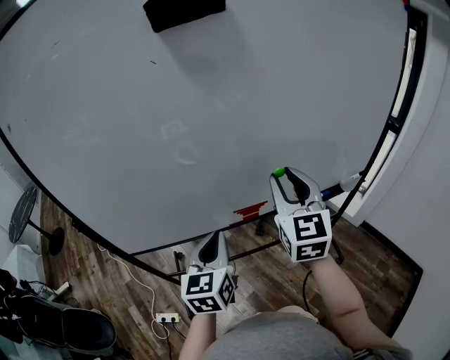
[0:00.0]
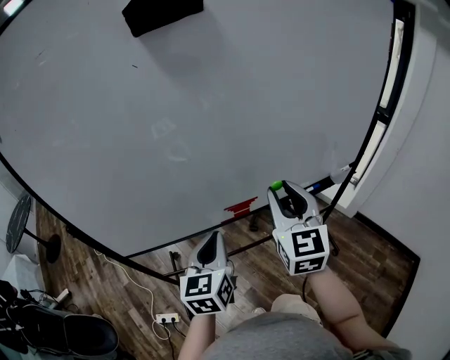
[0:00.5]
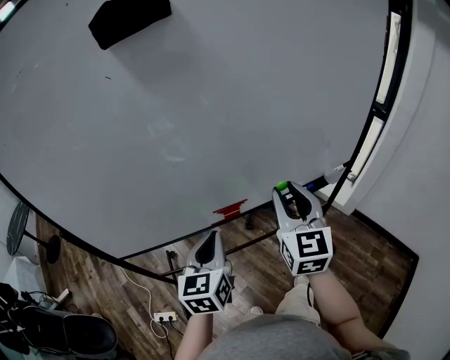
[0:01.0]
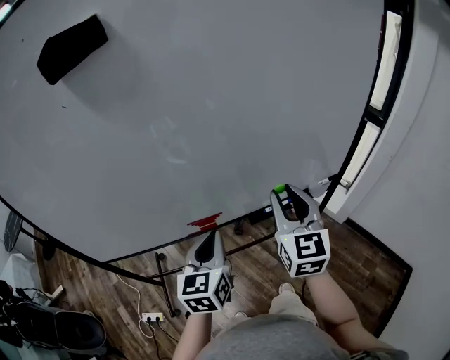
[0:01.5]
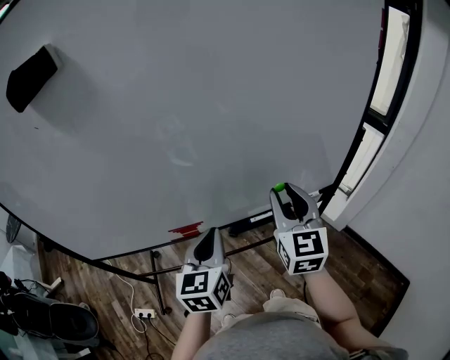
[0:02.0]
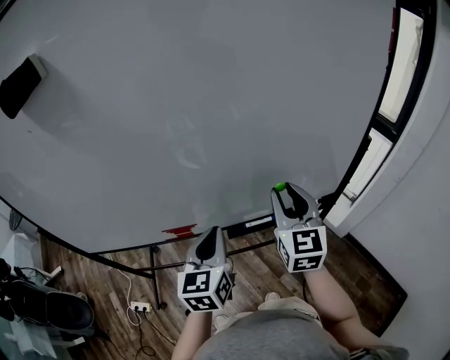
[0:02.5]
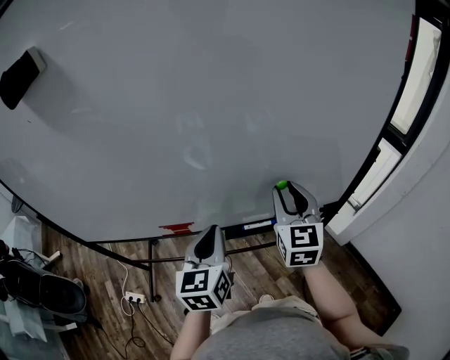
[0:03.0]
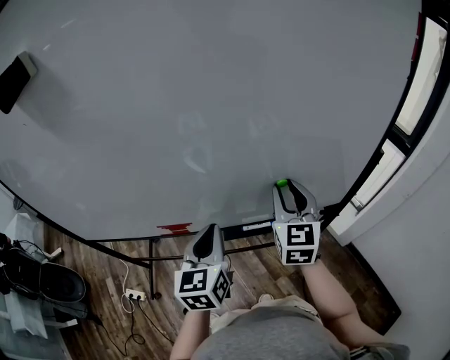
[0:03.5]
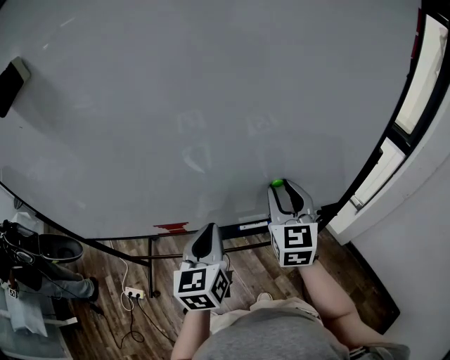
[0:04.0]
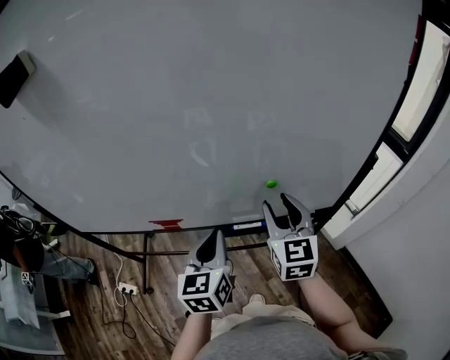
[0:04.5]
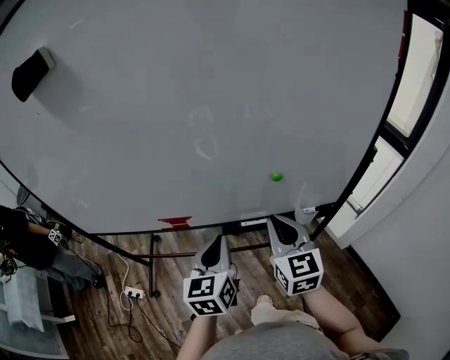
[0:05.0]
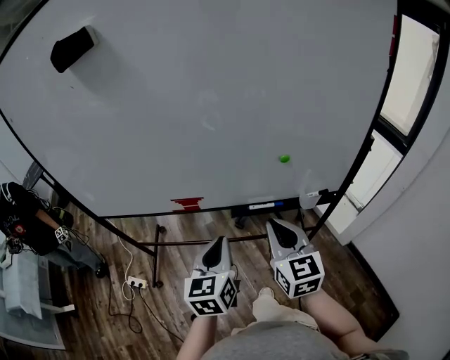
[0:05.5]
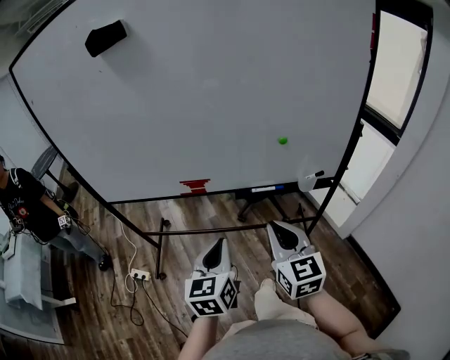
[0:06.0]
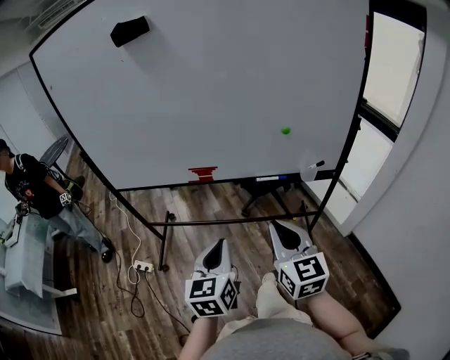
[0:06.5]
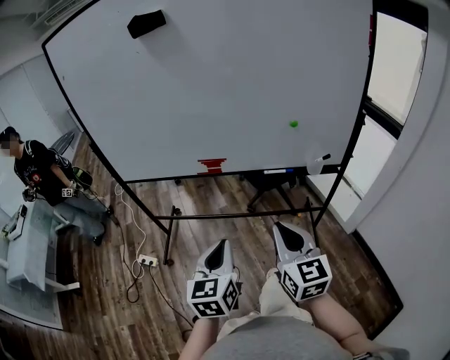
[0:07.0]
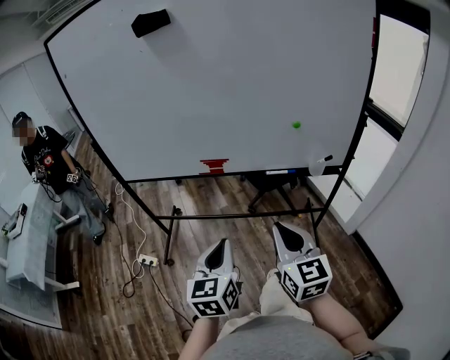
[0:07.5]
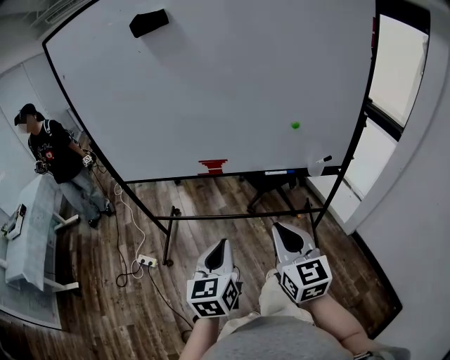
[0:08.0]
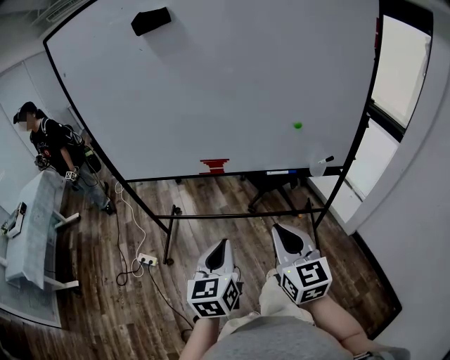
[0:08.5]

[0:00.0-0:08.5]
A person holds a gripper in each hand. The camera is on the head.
0:00.0 to 0:02.0: Both grippers move to the right, roughly 25 cm.
0:02.0 to 0:04.0: The left gripper moves to the right, about 5 cm. The right gripper moves forward, approximately 10 cm.
0:04.0 to 0:06.5: The grippers both shift backward by roughly 35 cm. The right gripper swivels some 20 degrees, and closes its fingers.
0:06.5 to 0:08.5: The right gripper moves about 5 cm.

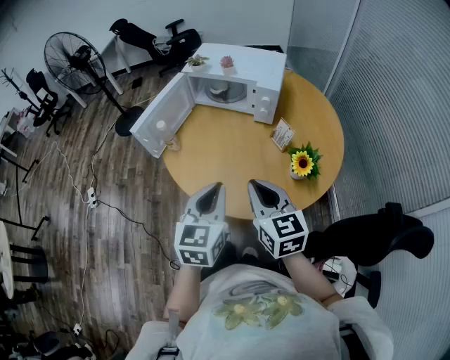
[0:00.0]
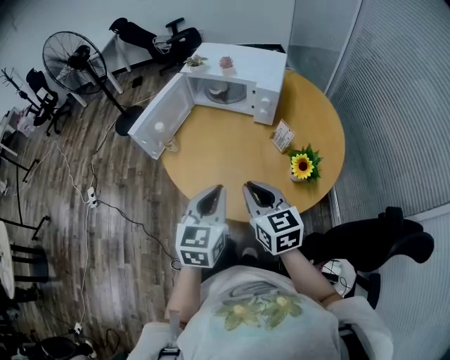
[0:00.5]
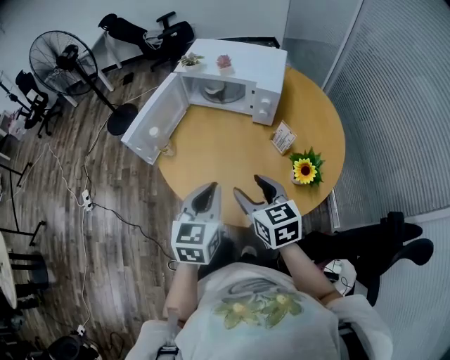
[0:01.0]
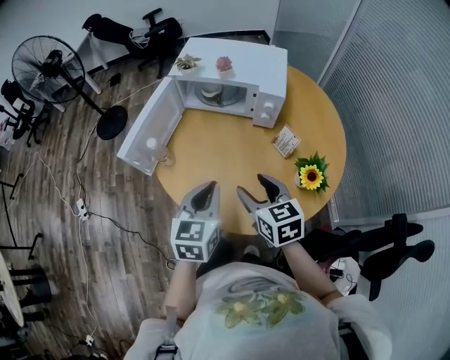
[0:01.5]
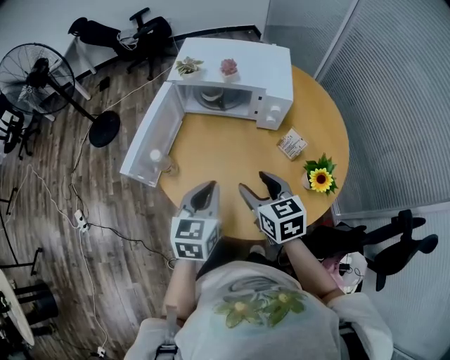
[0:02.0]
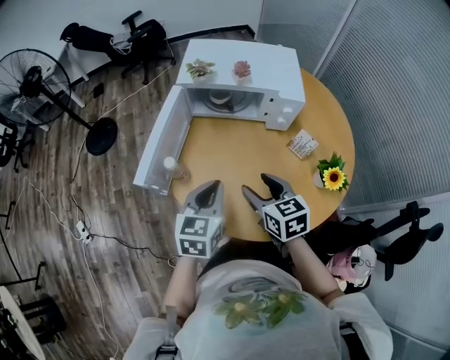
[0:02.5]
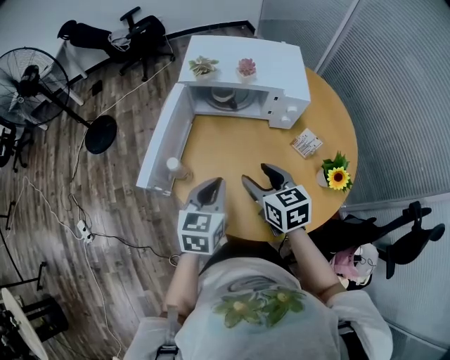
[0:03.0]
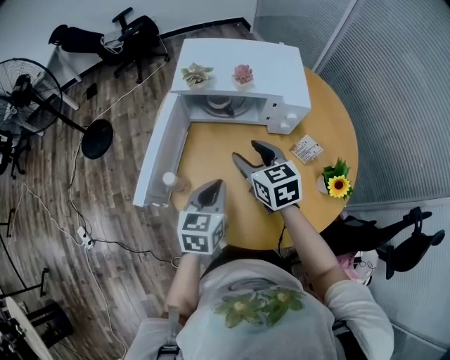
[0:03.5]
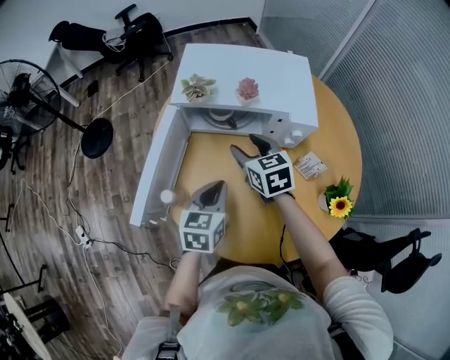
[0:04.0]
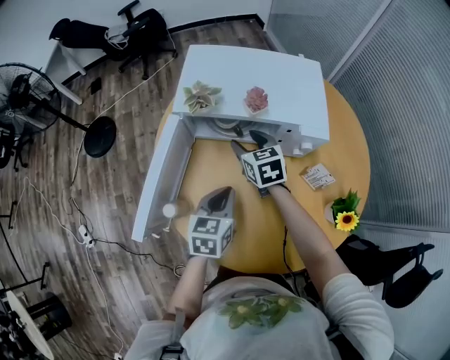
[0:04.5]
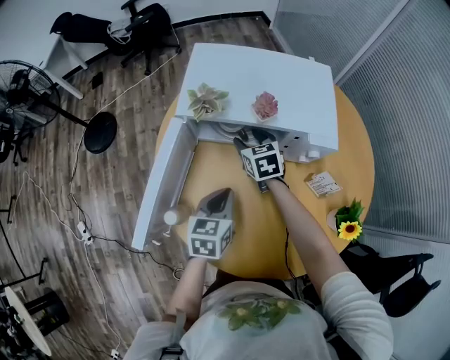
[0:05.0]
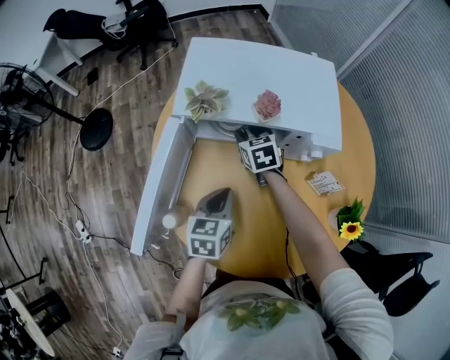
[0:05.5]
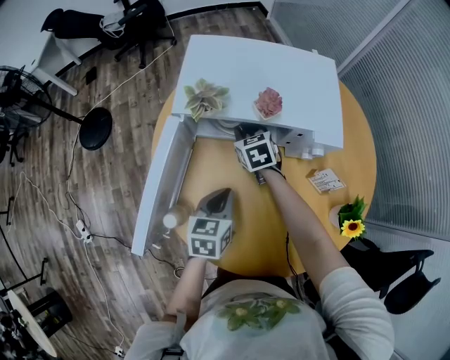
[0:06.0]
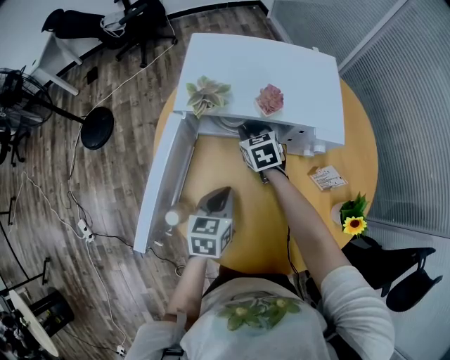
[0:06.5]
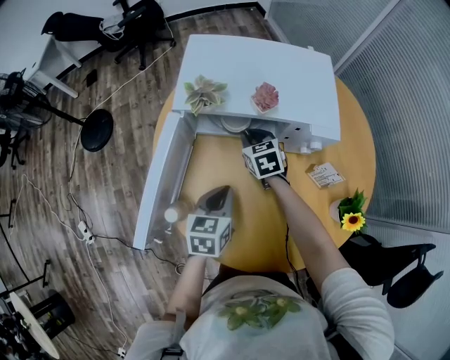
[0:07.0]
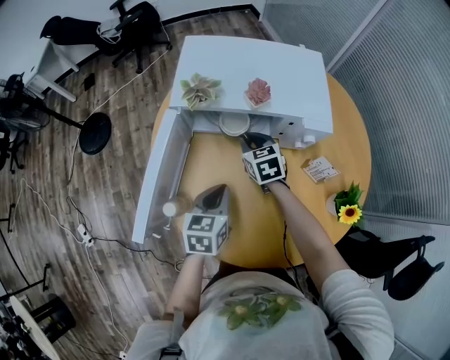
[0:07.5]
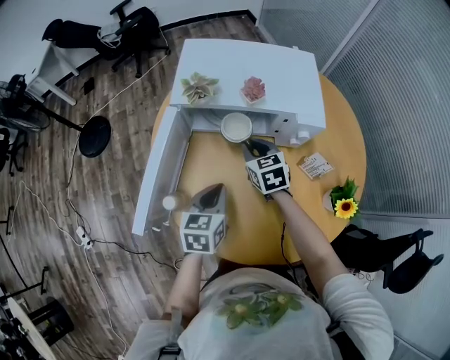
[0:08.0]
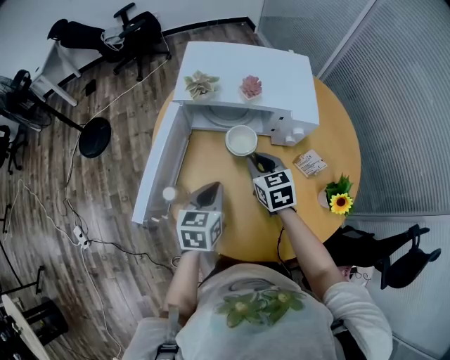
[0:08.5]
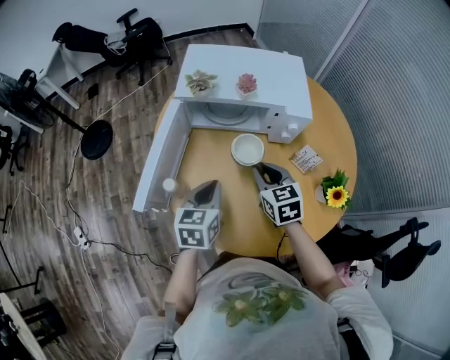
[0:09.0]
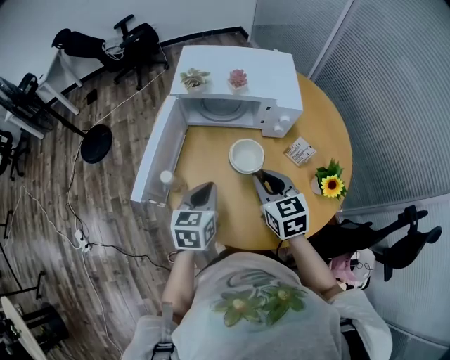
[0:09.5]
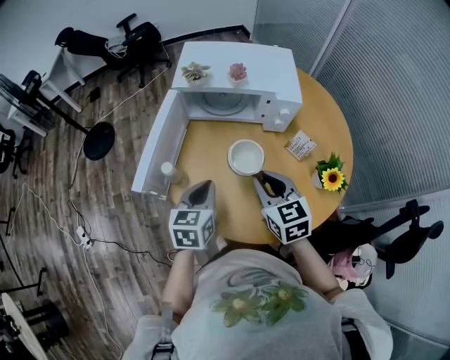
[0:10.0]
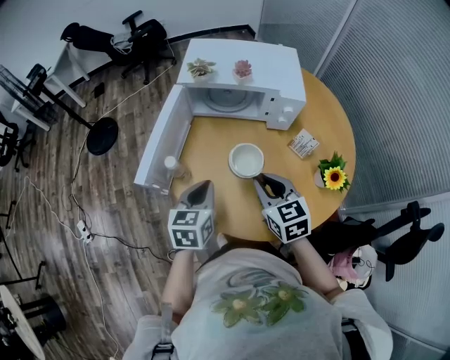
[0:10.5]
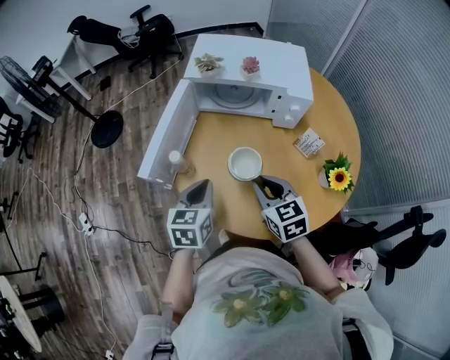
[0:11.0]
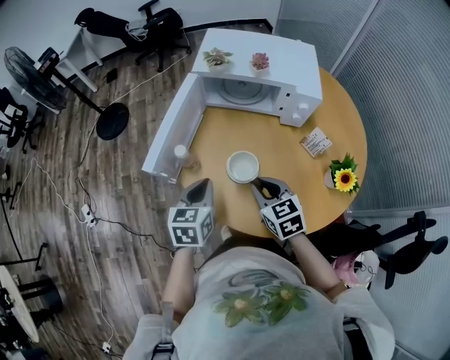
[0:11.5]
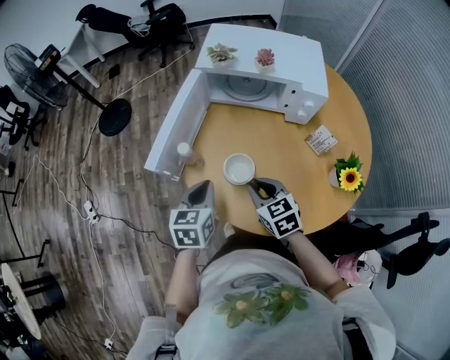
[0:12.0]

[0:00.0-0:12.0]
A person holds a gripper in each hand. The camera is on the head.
0:00.0 to 0:02.0: The right gripper shifts some 15 cm forward and downward, and opens up. The left gripper moves forward and to the left, about 20 cm.
0:02.0 to 0:04.0: The right gripper goes approximately 25 cm forward; the left gripper moves forward and downward, approximately 15 cm.
0:04.0 to 0:06.0: The left gripper travels downward by approximately 5 cm. The right gripper is displaced downward and forward by approximately 20 cm, and closes up.
0:06.0 to 0:08.0: The right gripper shifts roughly 10 cm backward and upward. The left gripper moves about 5 cm.
0:08.0 to 0:10.0: The right gripper is displaced backward and upward by roughly 25 cm, while the left gripper goes approximately 10 cm backward.
0:10.0 to 0:12.0: The right gripper shifts approximately 10 cm downward and to the left. The left gripper shifts some 5 cm to the left.

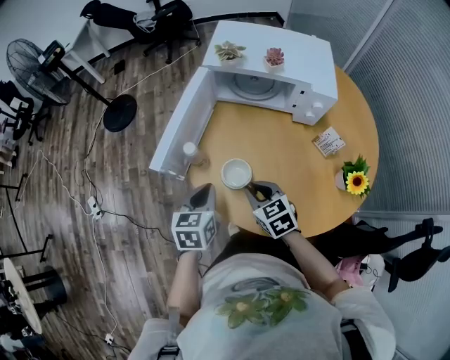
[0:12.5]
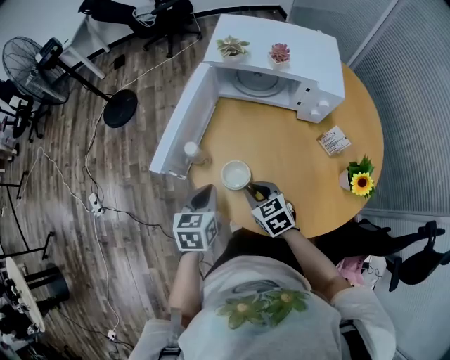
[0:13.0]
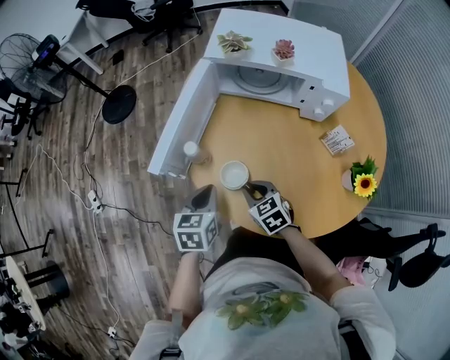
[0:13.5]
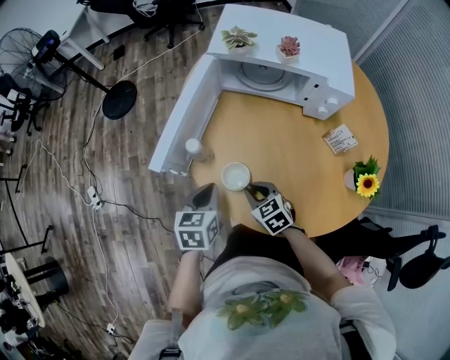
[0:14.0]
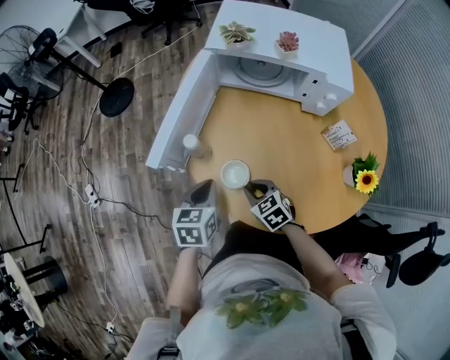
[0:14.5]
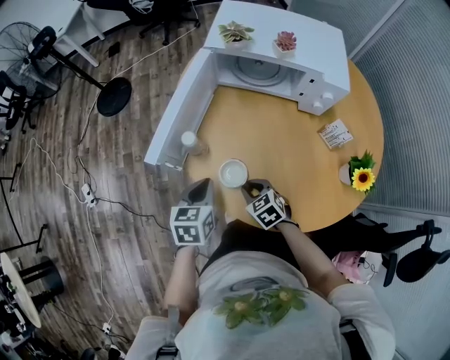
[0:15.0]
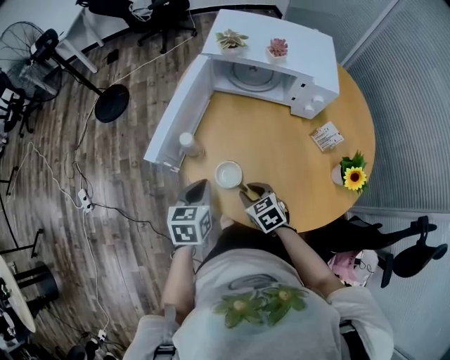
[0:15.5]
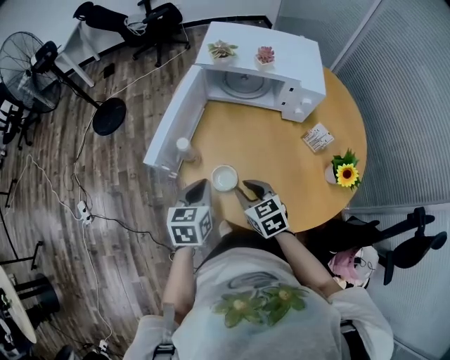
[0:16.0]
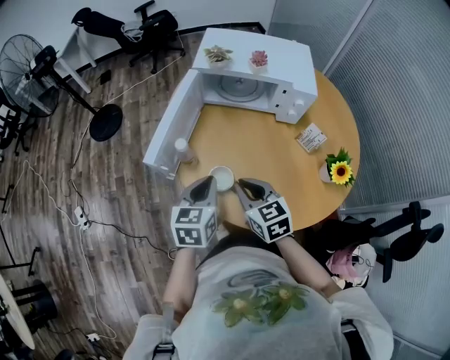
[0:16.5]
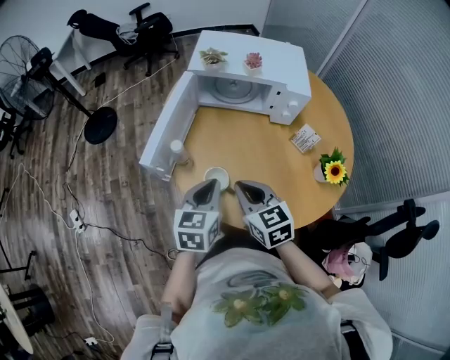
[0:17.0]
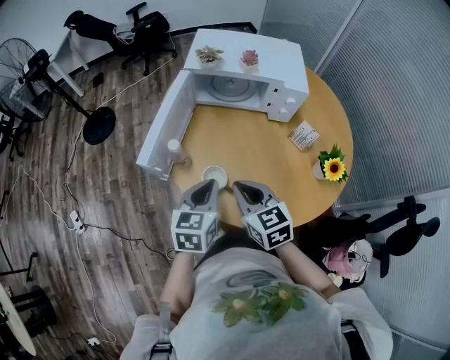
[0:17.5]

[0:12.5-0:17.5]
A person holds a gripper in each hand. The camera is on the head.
0:12.5 to 0:15.0: The right gripper is displaced downward by approximately 10 cm.
0:15.0 to 0:17.5: The left gripper goes approximately 10 cm upward and to the right. The right gripper goes about 20 cm upward, and changes its angle by some 30 degrees.

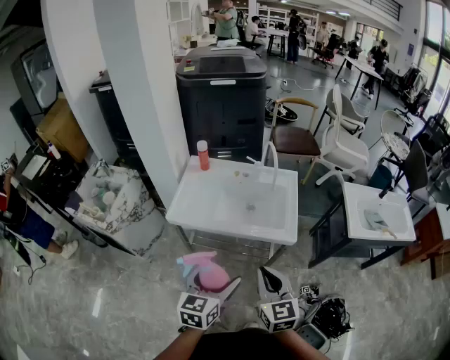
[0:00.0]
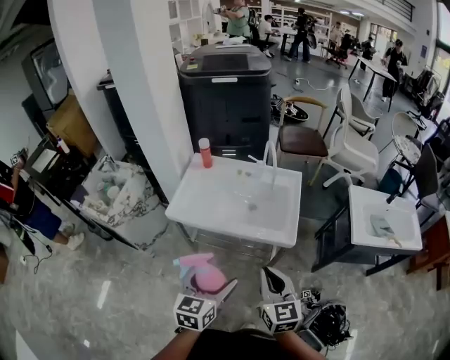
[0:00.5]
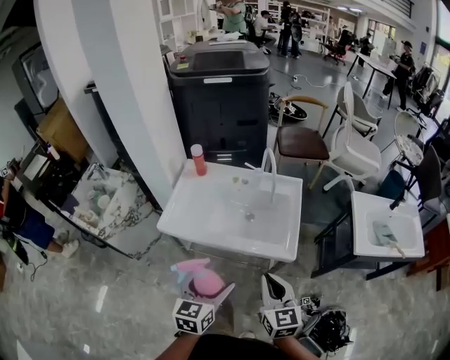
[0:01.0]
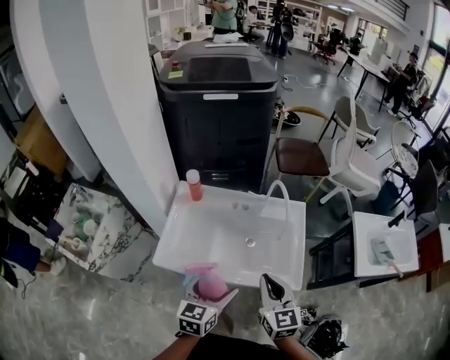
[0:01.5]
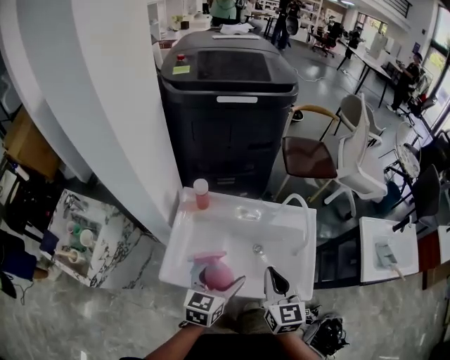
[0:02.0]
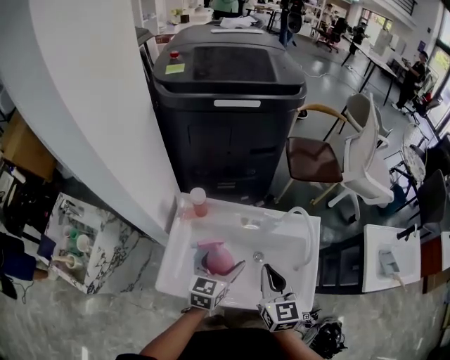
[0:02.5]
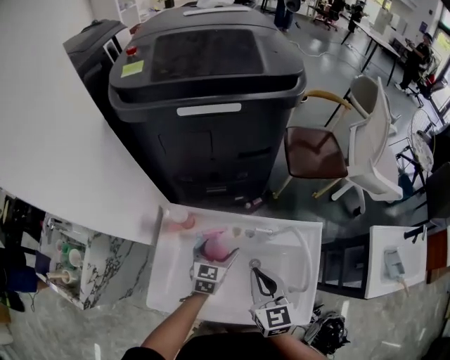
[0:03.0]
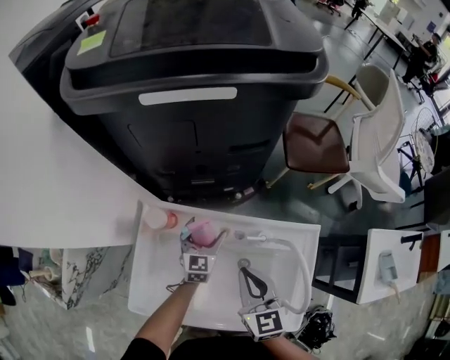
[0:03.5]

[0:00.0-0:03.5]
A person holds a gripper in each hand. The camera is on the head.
0:00.0 to 0:02.0: The grippers both shift forward by approximately 35 cm.
0:02.0 to 0:03.5: The left gripper moves forward and downward, roughly 40 cm, while the right gripper travels forward and downward by roughly 25 cm.
